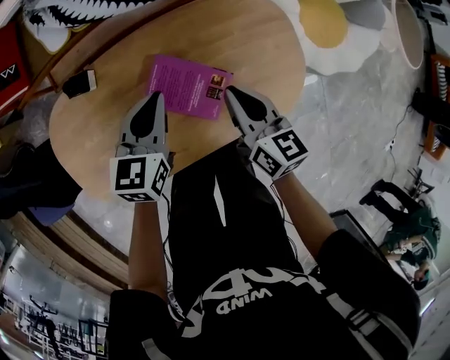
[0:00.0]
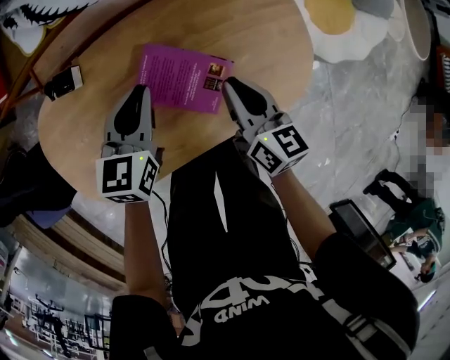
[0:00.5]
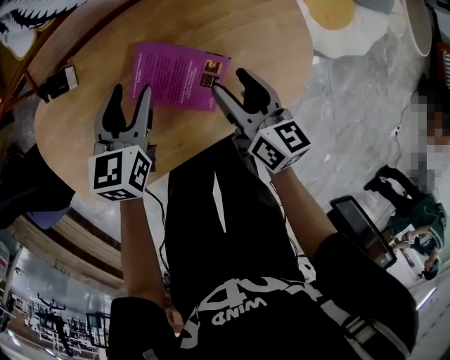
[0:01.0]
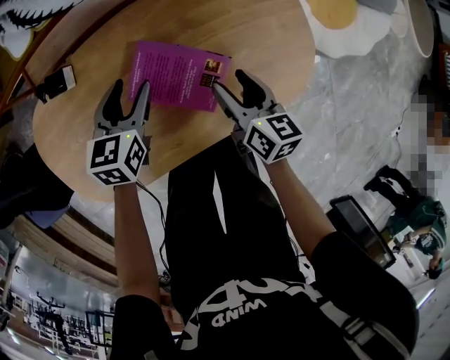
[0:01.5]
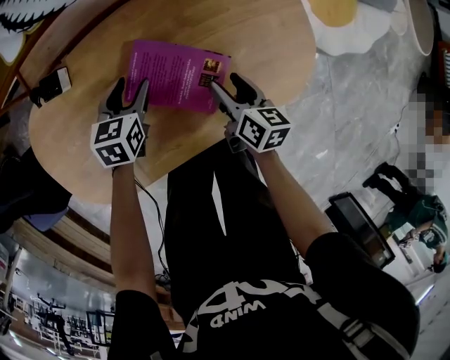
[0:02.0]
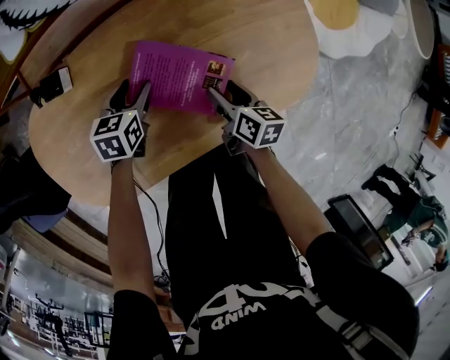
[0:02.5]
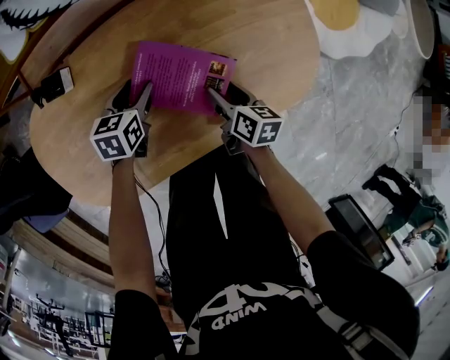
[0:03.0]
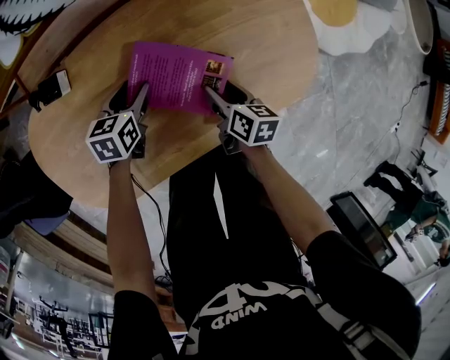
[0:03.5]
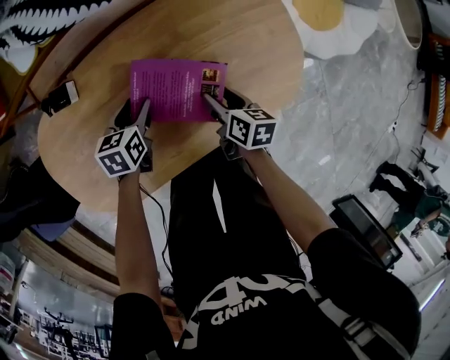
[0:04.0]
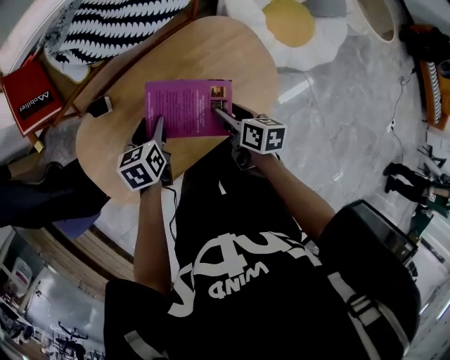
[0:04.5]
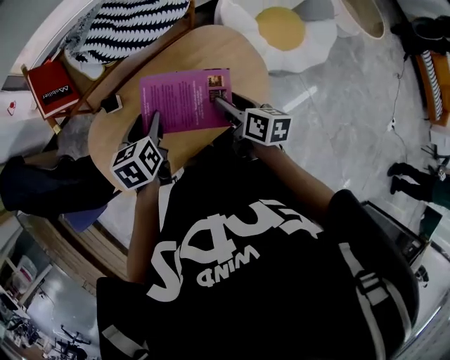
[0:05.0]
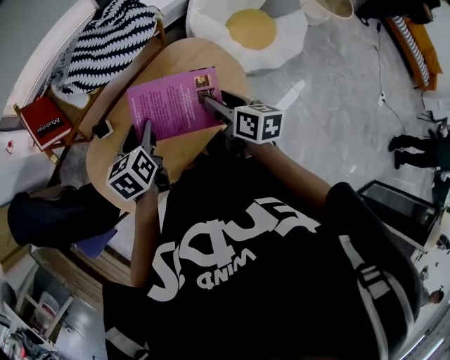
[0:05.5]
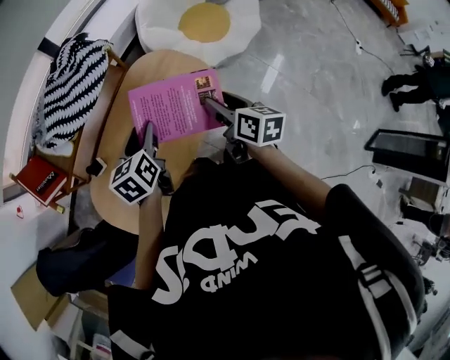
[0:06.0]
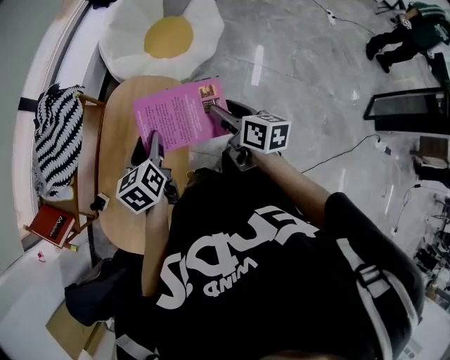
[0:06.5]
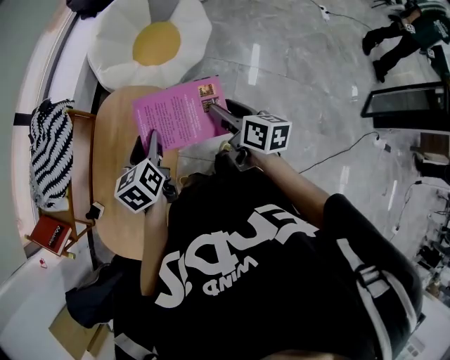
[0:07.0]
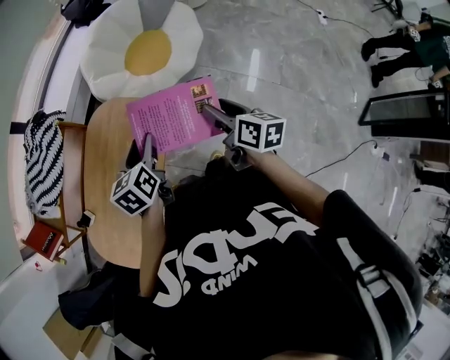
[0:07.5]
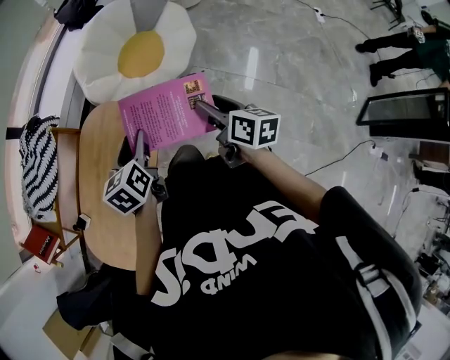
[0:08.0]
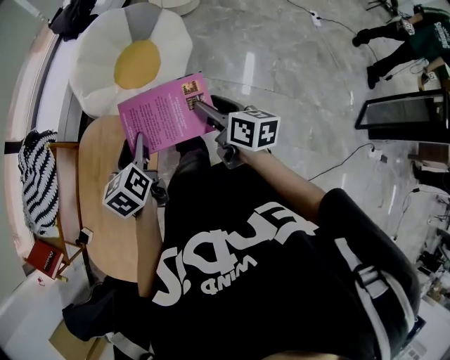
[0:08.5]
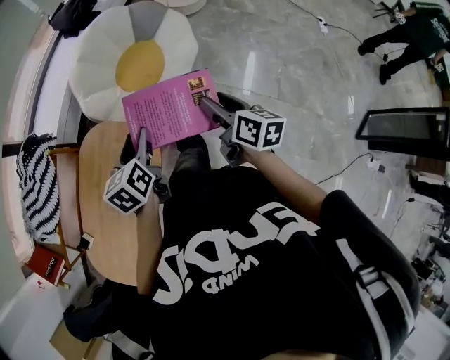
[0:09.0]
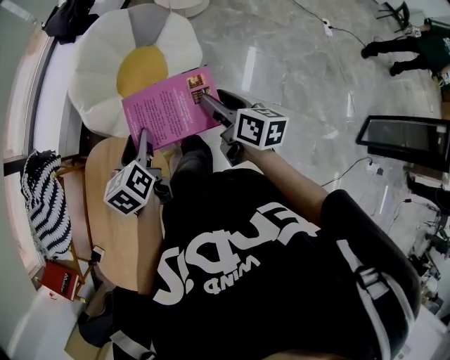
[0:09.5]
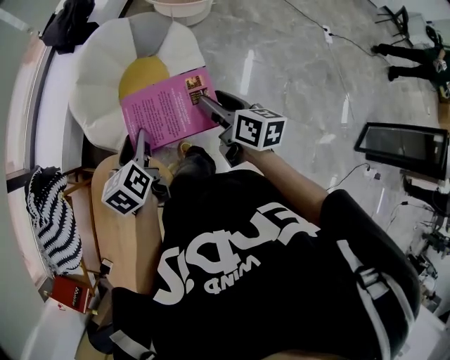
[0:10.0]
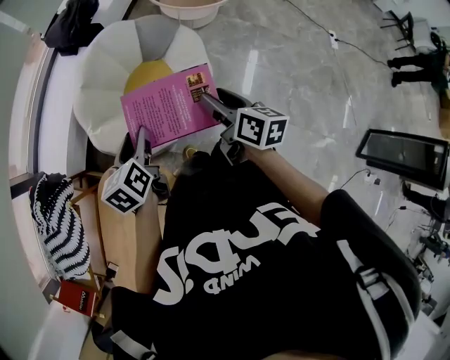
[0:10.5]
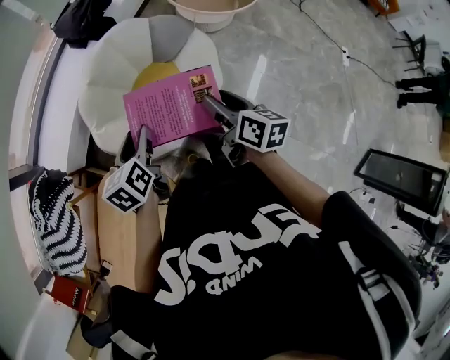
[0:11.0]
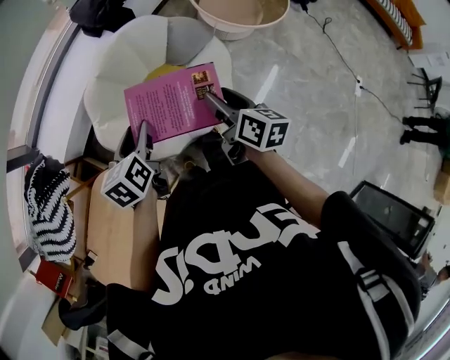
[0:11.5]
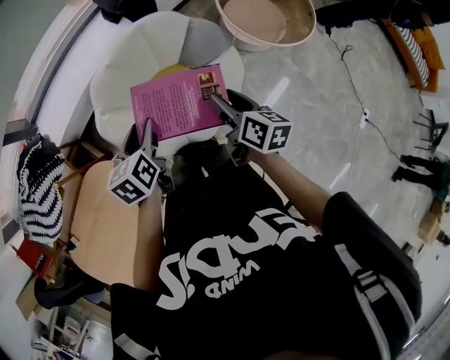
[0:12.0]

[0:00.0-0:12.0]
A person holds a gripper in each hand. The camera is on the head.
0:00.0 to 0:02.0: Both grippers move downward, some 20 cm. The right gripper turns by roughly 20 degrees, and opens, while the left gripper opens up.
0:02.0 to 0:04.0: The grippers stay close to where they were, moving slightly.
0:04.0 to 0:06.0: The grippers both shift upward by about 40 cm. The left gripper changes its angle by some 20 degrees, while the right gripper swivels some 30 degrees.
0:06.0 to 0:08.0: The grippers both shift to the right by about 35 cm.
0:08.0 to 0:10.0: Both grippers travel together forward, about 35 cm.
0:10.0 to 0:12.0: Both grippers move forward, about 30 cm. The left gripper turns by some 20 degrees. Meanwhile the right gripper turns by some 20 degrees.

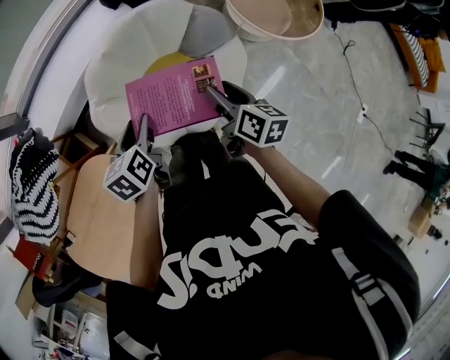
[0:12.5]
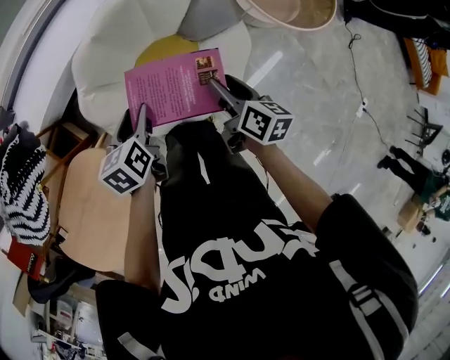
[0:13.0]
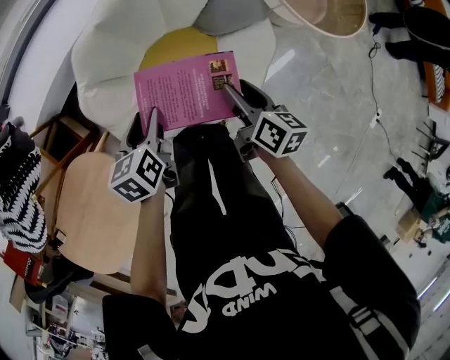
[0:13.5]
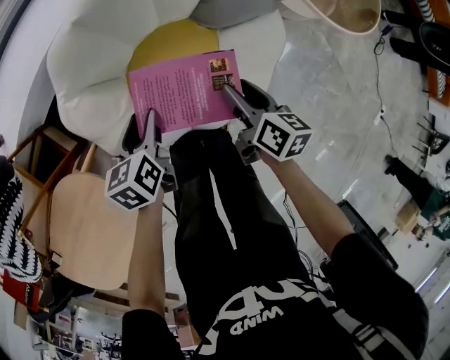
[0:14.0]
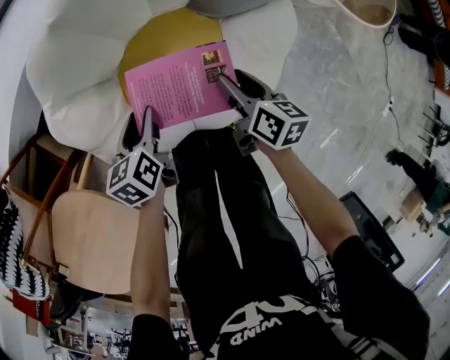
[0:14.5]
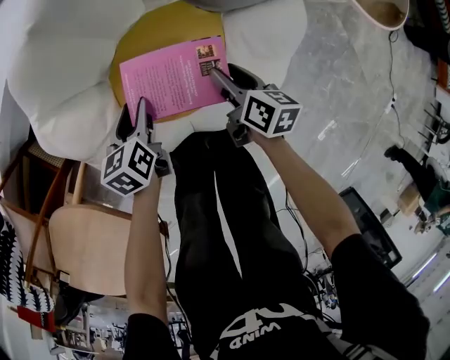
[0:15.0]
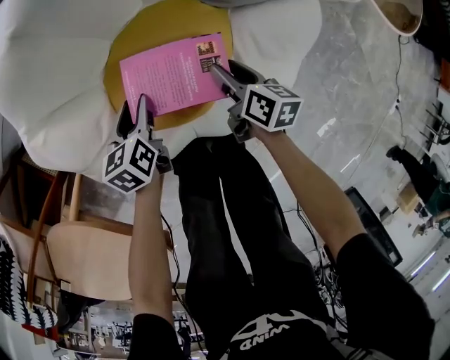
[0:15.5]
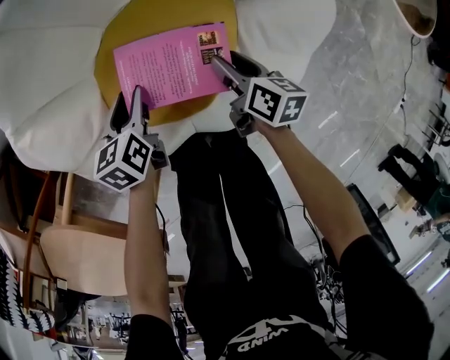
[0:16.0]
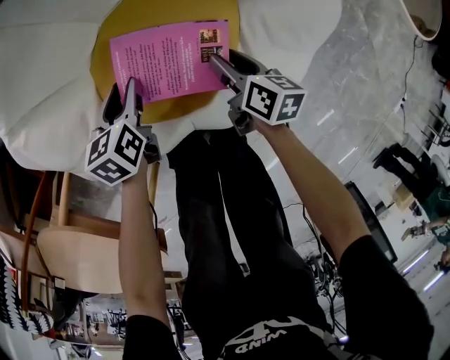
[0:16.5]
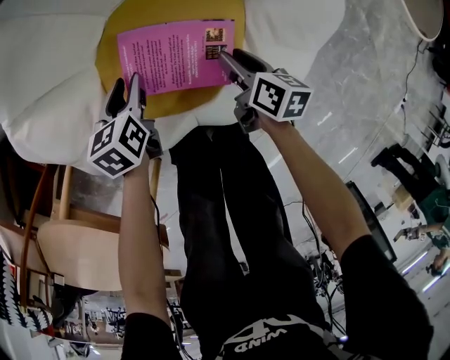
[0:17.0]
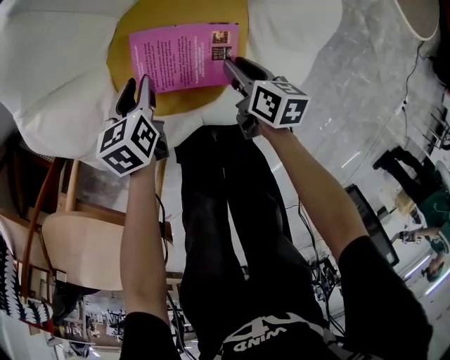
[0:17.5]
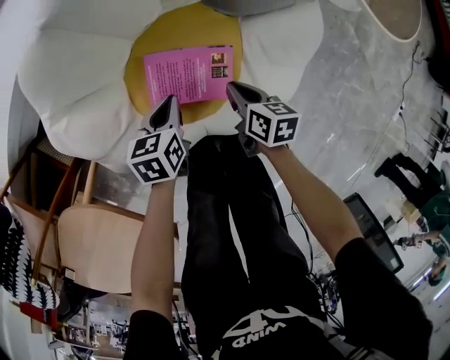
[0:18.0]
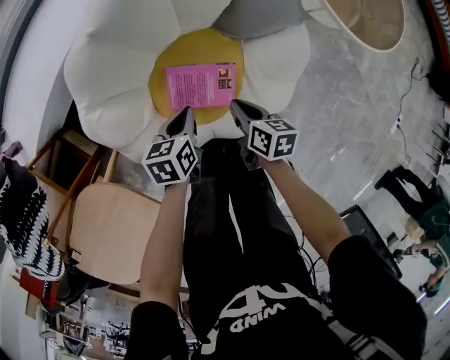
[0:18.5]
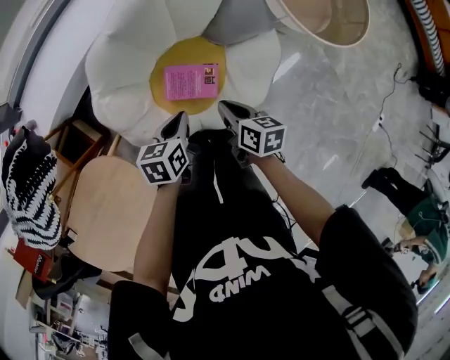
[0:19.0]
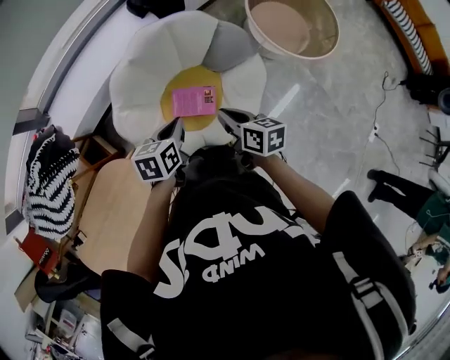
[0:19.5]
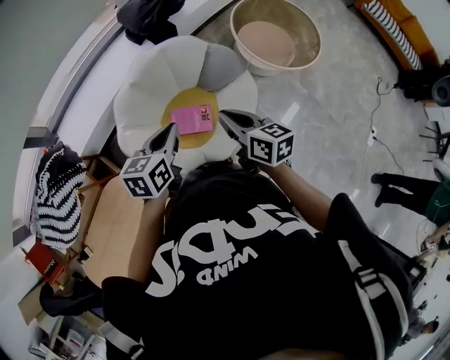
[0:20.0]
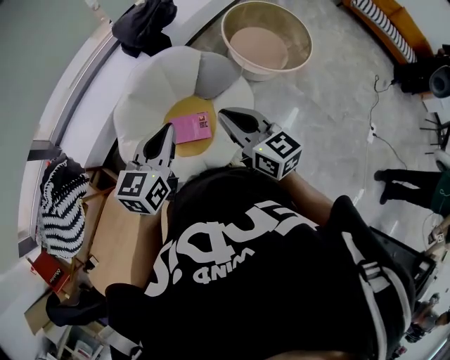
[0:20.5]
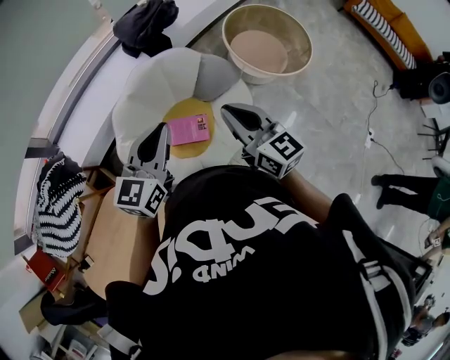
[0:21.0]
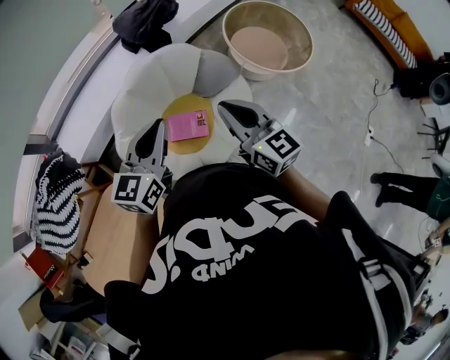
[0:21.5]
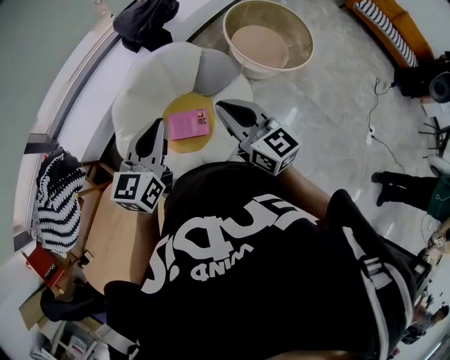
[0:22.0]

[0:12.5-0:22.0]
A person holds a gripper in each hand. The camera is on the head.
0:12.5 to 0:14.5: The left gripper moves roughly 15 cm downward and comes back. Meanwhile the right gripper reaches about 15 cm downward, then returns.
0:14.5 to 0:16.5: The two grippers go approximately 15 cm downward.
0:16.5 to 0:18.0: The left gripper shifts approximately 10 cm upward and to the right, and closes up, while the right gripper travels upward by some 5 cm, and closes.
0:18.0 to 0:20.0: The two grippers go approximately 50 cm upward. The left gripper rotates approximately 20 degrees. Meanwhile the right gripper changes its angle by some 30 degrees.
0:20.0 to 0:22.0: The two grippers go about 10 cm upward. The left gripper swivels roughly 20 degrees, while the right gripper changes its angle by about 30 degrees.

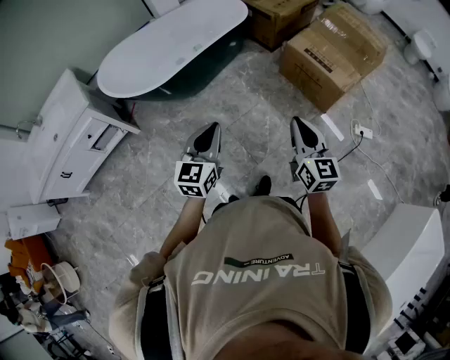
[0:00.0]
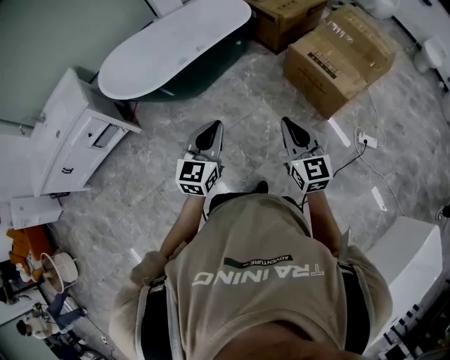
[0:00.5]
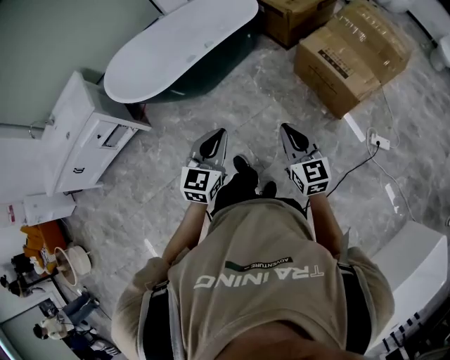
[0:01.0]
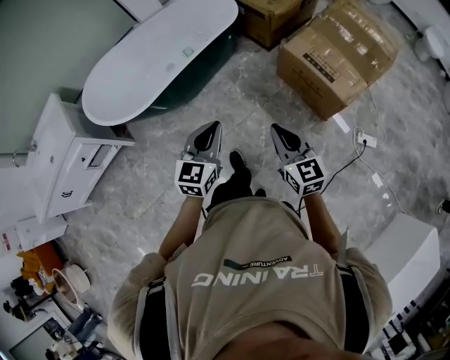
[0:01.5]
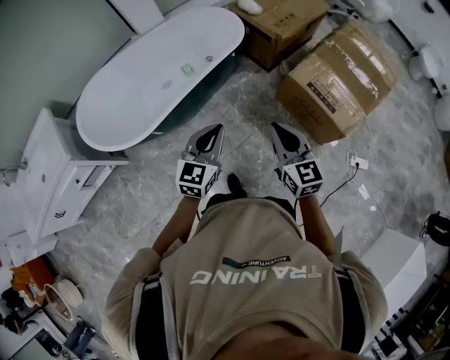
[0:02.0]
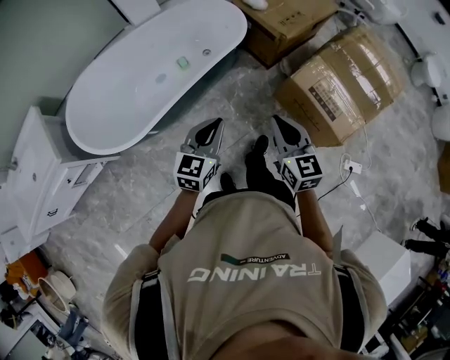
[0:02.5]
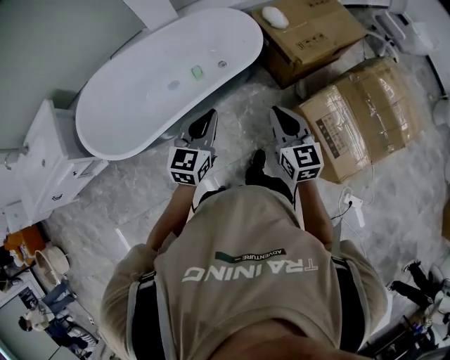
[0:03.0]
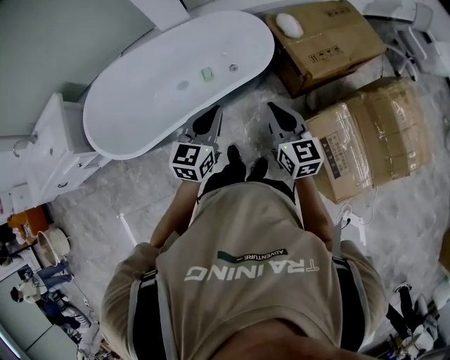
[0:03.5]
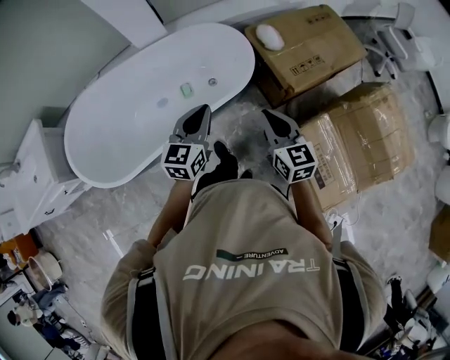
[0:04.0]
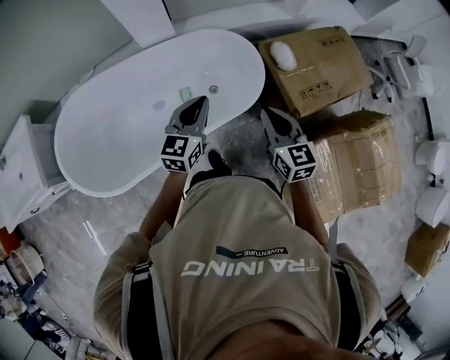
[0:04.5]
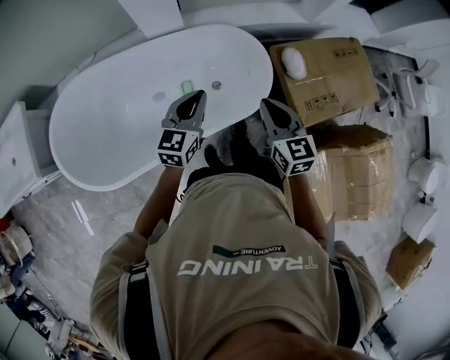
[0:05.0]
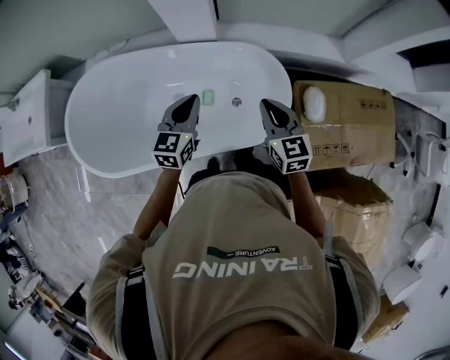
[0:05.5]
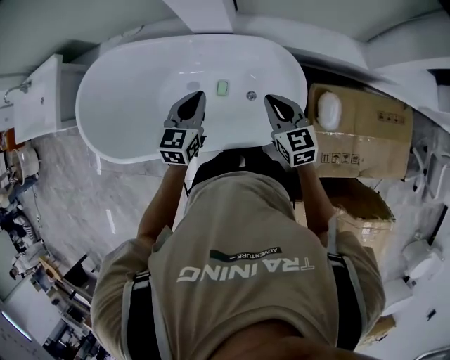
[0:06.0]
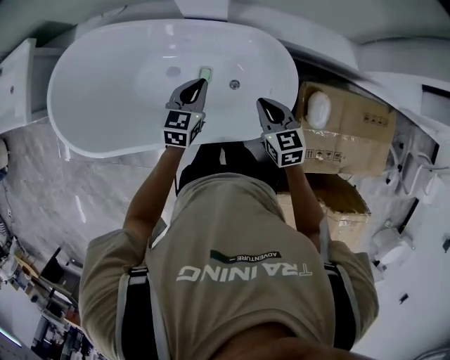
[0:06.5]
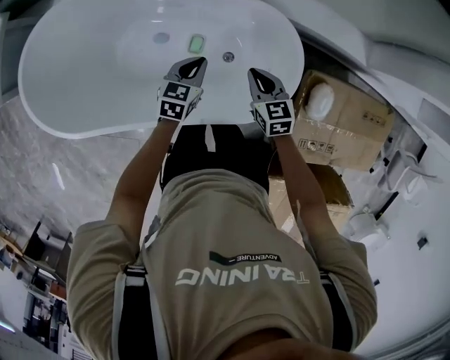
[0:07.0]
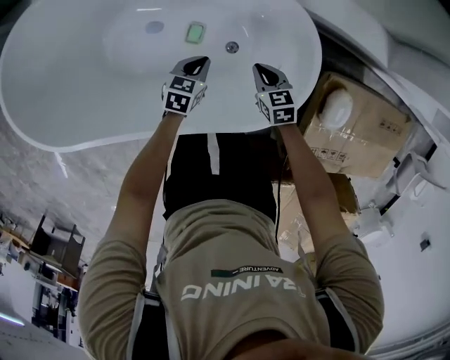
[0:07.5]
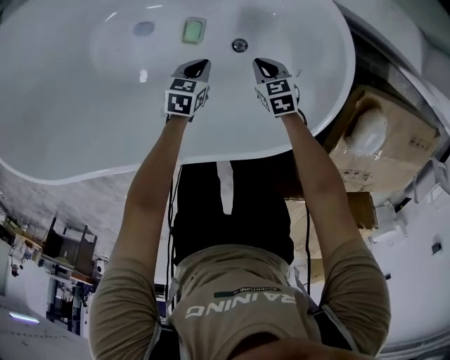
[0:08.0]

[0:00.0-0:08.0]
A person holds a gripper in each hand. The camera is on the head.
0:00.0 to 0:02.0: The two grippers go roughly 35 cm forward.
0:02.0 to 0:04.0: The two grippers travel together, forward, approximately 40 cm. The left gripper turns by approximately 20 degrees.
0:04.0 to 0:06.0: The left gripper ends up about 35 cm from where it was, and turns by roughly 30 degrees. The right gripper shifts by about 40 cm, and rotates about 40 degrees.
0:06.0 to 0:08.0: Both grippers travel together downward, roughly 50 cm. The left gripper rotates about 40 degrees. The right gripper points its fingers about 30 degrees further downward.
